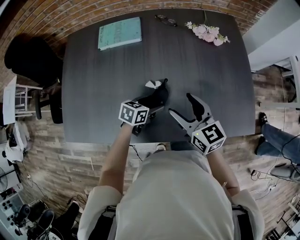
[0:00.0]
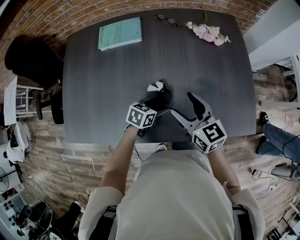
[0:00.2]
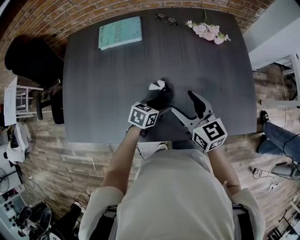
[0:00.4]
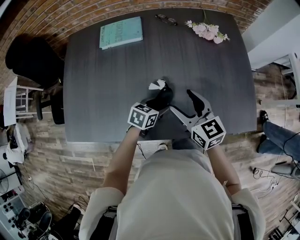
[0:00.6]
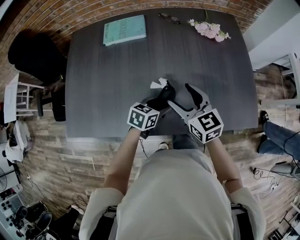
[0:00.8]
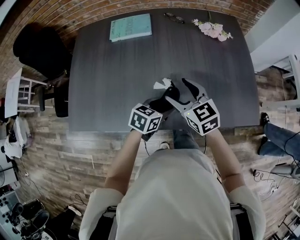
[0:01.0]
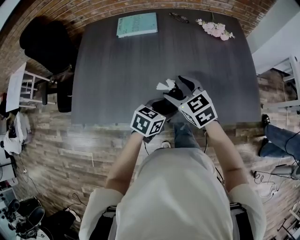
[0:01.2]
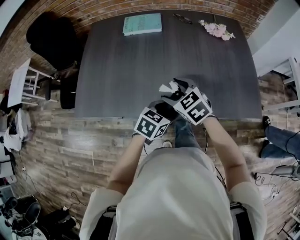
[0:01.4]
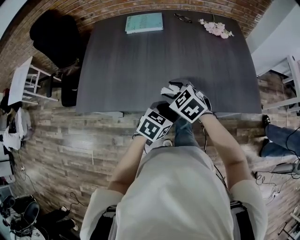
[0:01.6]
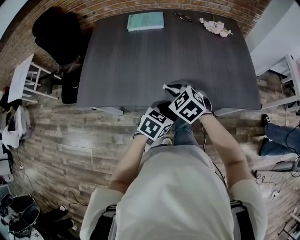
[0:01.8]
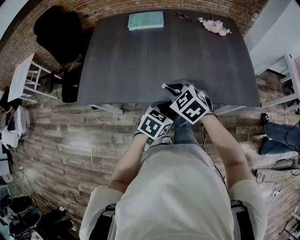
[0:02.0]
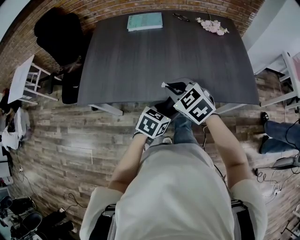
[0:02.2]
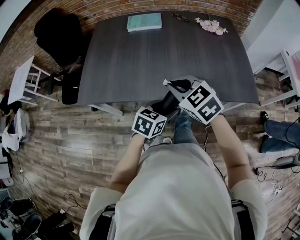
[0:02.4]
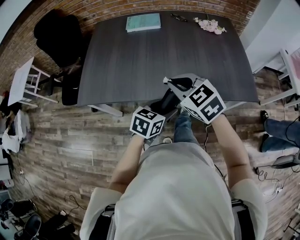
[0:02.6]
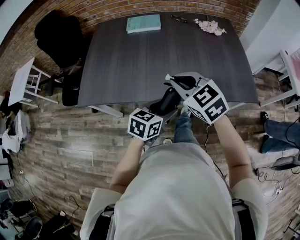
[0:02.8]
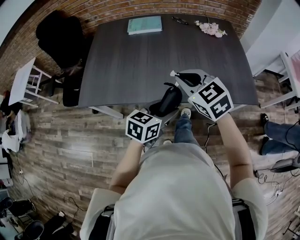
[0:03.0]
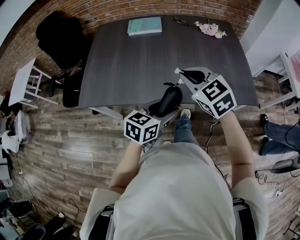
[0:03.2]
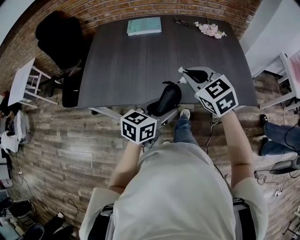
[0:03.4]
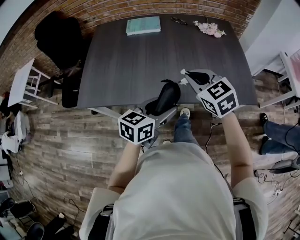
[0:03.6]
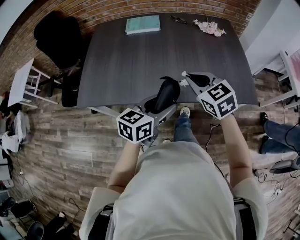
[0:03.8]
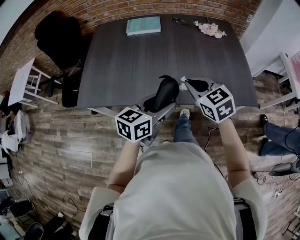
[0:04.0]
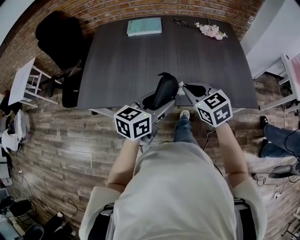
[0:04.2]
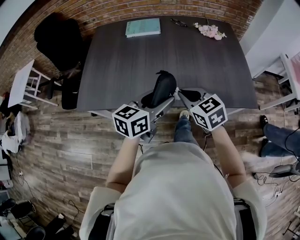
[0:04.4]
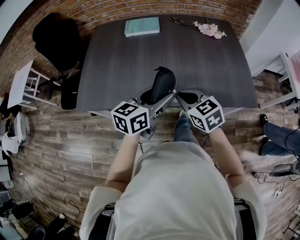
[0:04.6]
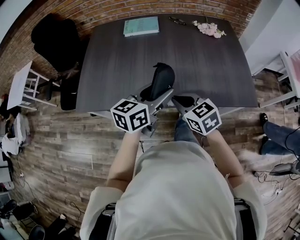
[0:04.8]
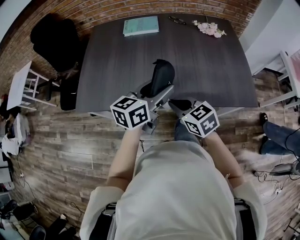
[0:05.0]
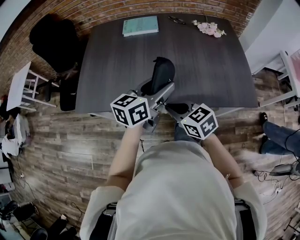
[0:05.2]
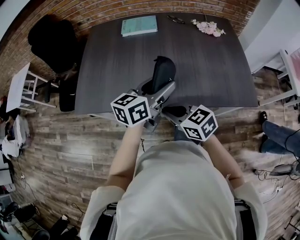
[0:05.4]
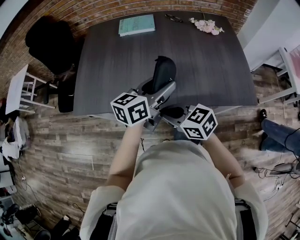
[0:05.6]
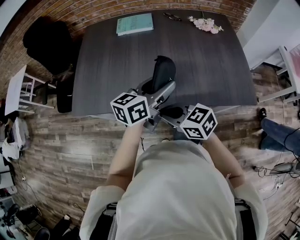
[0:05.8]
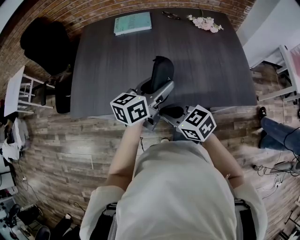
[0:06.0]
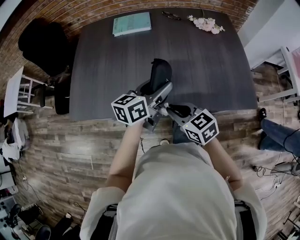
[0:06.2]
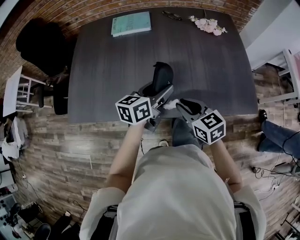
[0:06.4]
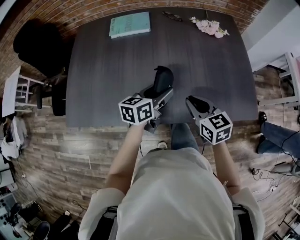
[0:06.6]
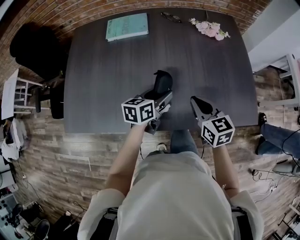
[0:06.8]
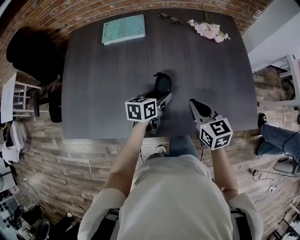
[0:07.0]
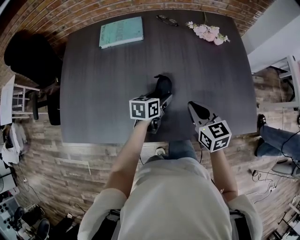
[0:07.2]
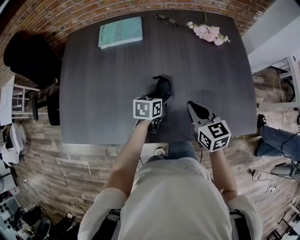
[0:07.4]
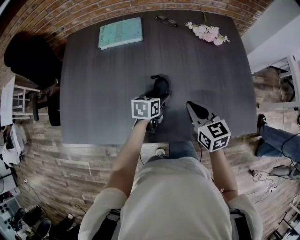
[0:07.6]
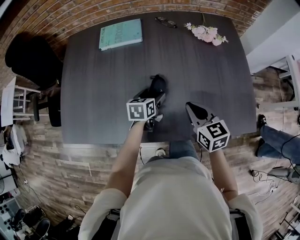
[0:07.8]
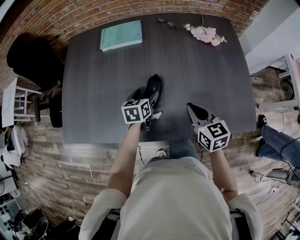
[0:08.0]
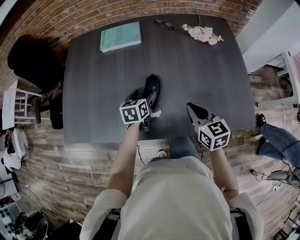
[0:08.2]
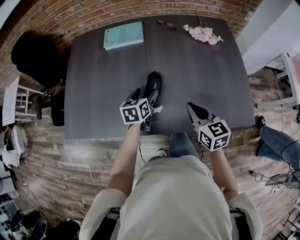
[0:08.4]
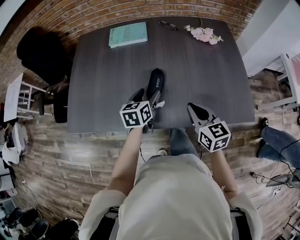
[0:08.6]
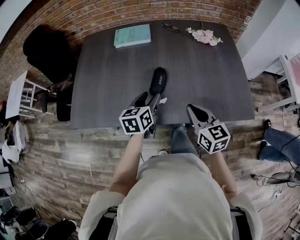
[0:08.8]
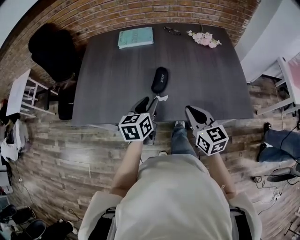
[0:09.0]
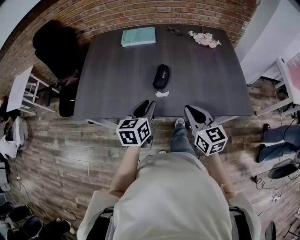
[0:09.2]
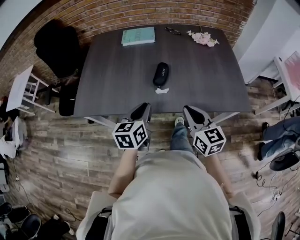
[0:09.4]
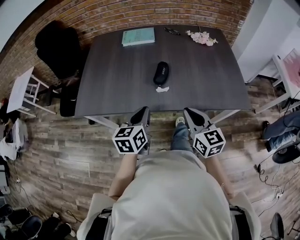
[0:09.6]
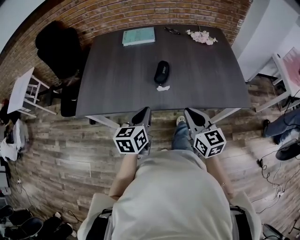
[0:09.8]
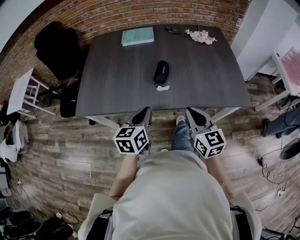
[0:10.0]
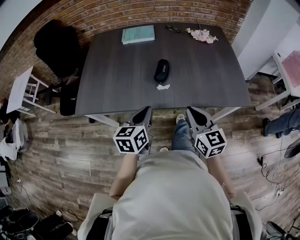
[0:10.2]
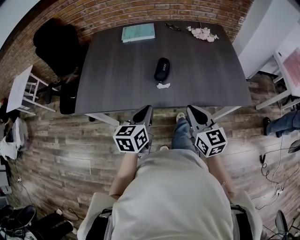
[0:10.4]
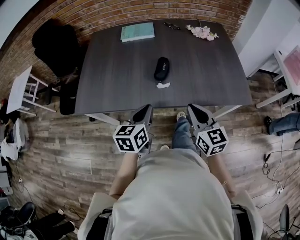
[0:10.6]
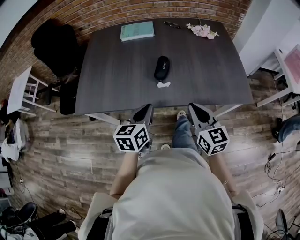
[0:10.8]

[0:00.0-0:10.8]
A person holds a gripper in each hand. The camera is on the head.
0.0 to 1.6 s: The right gripper travels backward and to the left by approximately 20 cm, and changes its angle by roughly 40 degrees; the left gripper goes roughly 25 cm backward and upward.
1.6 to 3.0 s: The left gripper shifts approximately 10 cm upward and backward. The right gripper heads upward and backward, covering roughly 15 cm, and closes its fingers.
3.0 to 4.6 s: The left gripper goes roughly 10 cm forward and upward. The right gripper heads downward, covering roughly 10 cm.
4.6 to 6.2 s: The left gripper moves forward, roughly 10 cm.
6.2 to 7.8 s: The right gripper shifts about 20 cm forward and to the right, and swivels some 20 degrees; the left gripper travels downward and forward by approximately 25 cm, and tips its fingers downward by some 30 degrees.
7.8 to 9.2 s: Both grippers move backward and upward, some 25 cm. The left gripper turns by roughly 20 degrees, and closes.
9.2 to 10.8 s: The left gripper moves backward, about 5 cm.

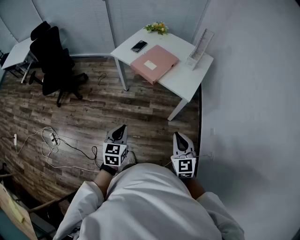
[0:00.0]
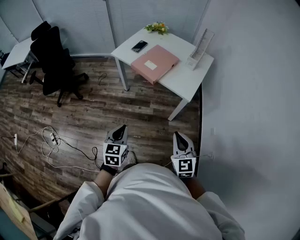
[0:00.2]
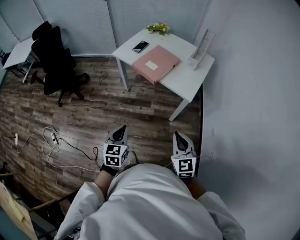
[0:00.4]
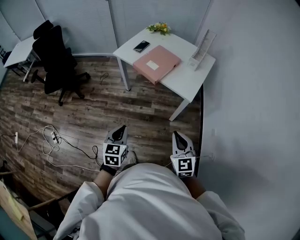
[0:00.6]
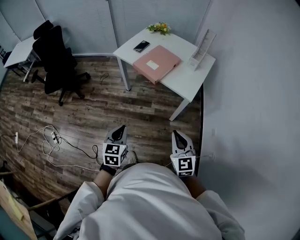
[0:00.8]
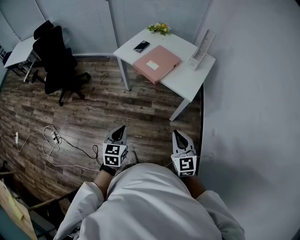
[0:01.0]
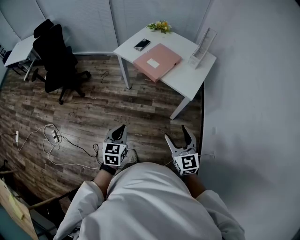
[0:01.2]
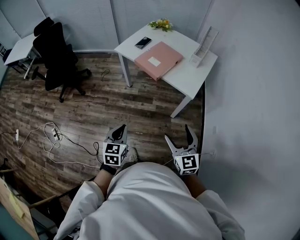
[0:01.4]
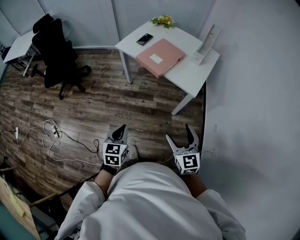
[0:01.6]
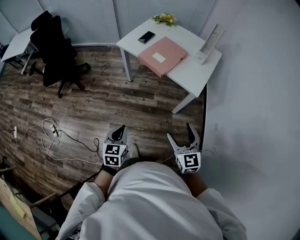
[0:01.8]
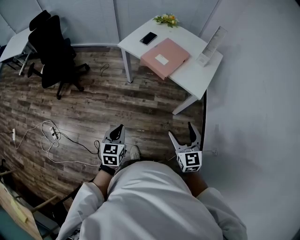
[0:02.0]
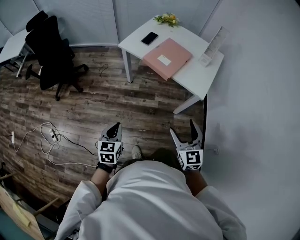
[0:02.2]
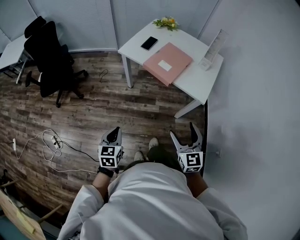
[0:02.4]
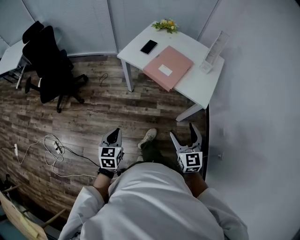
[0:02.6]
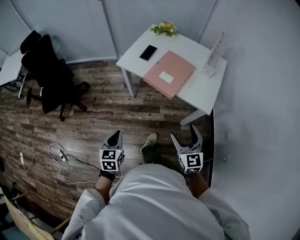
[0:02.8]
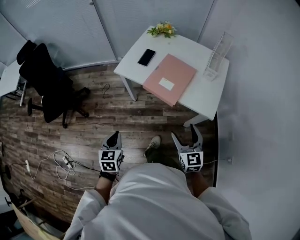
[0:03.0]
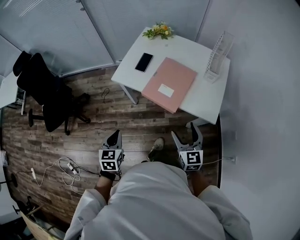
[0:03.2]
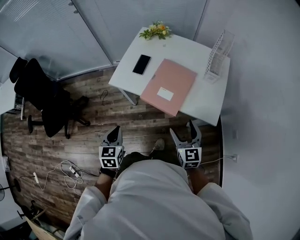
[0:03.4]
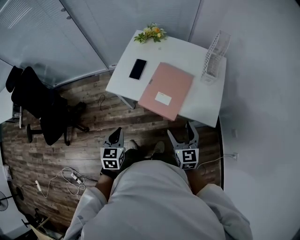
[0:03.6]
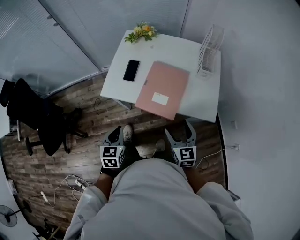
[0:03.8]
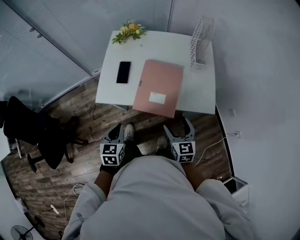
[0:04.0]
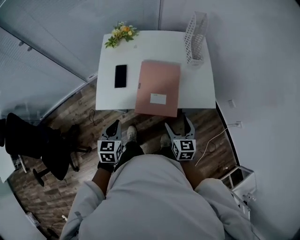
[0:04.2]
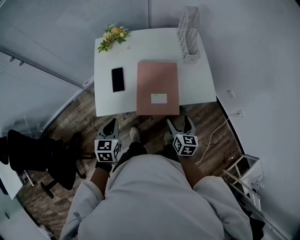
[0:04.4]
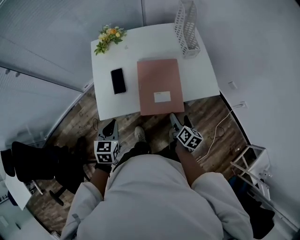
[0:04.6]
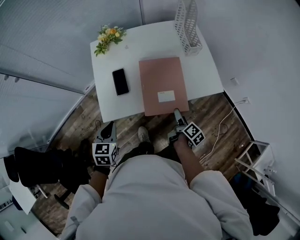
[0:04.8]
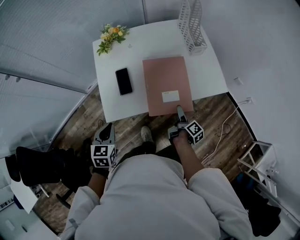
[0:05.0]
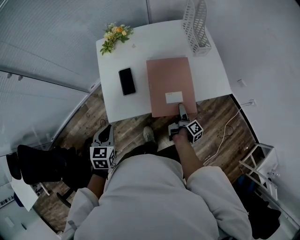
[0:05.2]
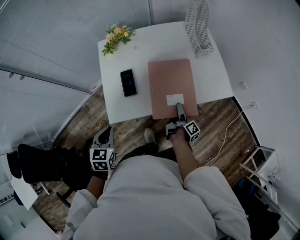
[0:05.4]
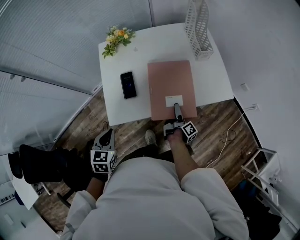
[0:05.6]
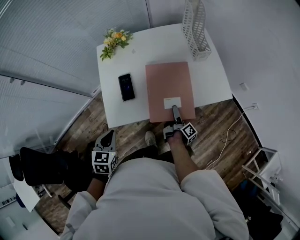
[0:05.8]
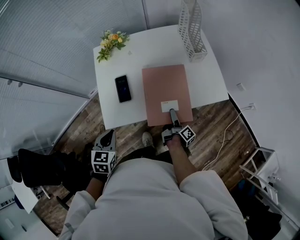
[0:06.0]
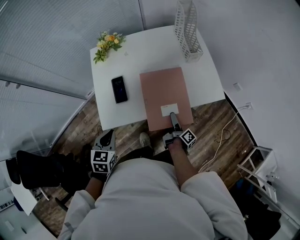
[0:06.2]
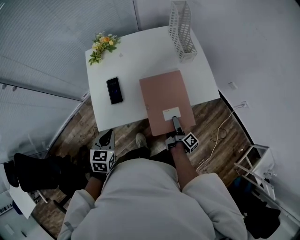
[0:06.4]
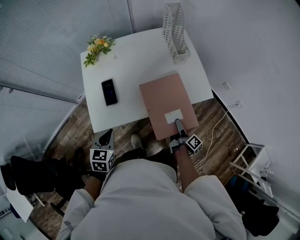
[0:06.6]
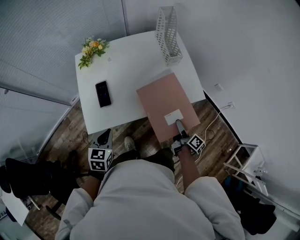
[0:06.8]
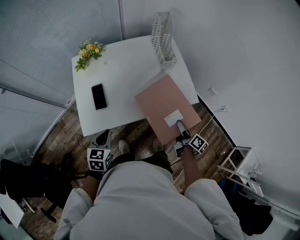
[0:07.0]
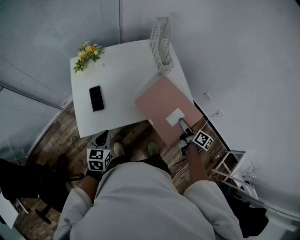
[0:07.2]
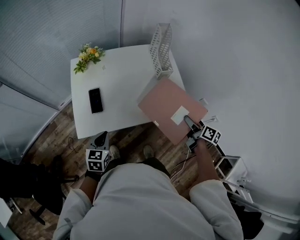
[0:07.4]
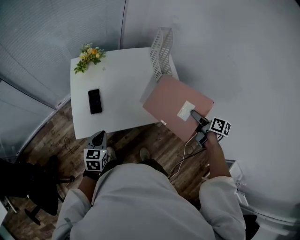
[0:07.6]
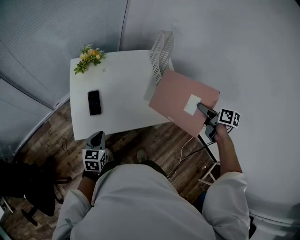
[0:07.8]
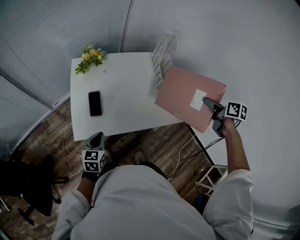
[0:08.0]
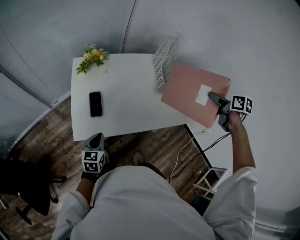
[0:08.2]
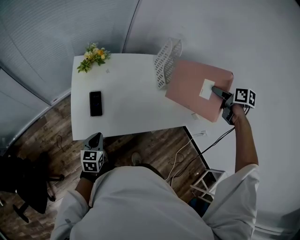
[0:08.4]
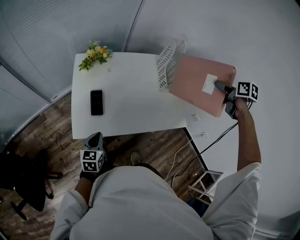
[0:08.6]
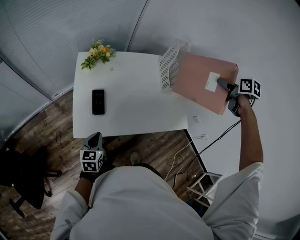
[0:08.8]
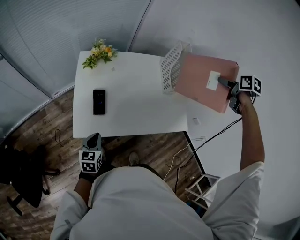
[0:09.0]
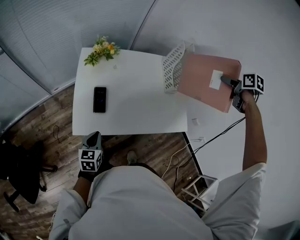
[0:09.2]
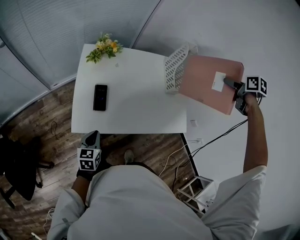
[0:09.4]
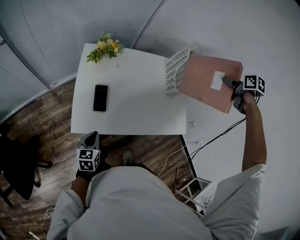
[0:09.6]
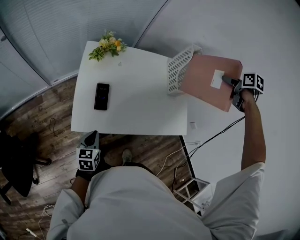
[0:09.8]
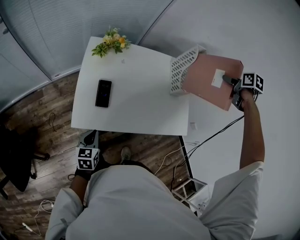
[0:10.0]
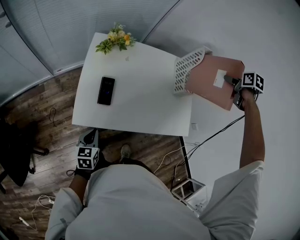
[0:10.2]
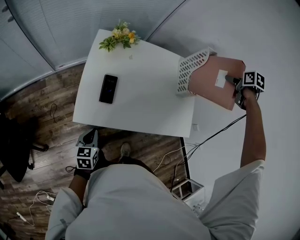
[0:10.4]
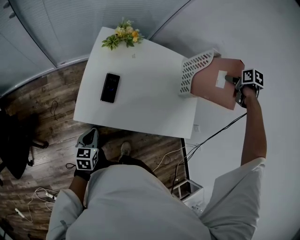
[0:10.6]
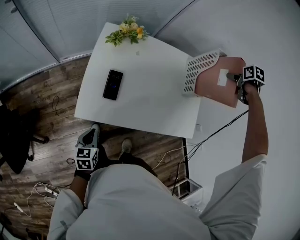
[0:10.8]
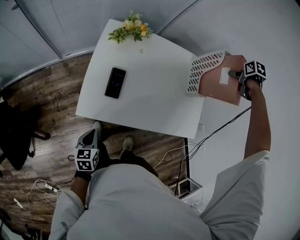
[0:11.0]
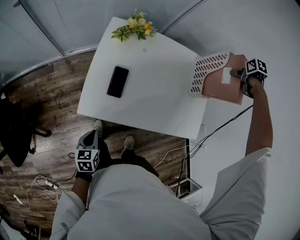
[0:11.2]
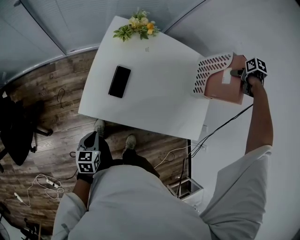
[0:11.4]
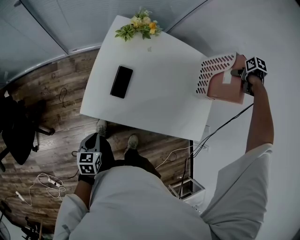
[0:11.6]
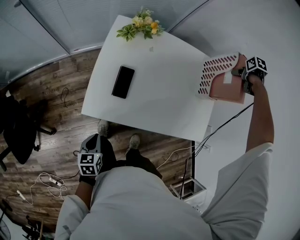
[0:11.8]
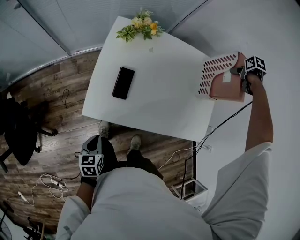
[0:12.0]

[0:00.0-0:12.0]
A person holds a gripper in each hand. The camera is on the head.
0.0 to 1.6 s: The right gripper opens up.
1.6 to 3.0 s: The right gripper travels forward by approximately 25 cm. The left gripper is displaced forward and to the left by roughly 30 cm.
3.0 to 4.4 s: The left gripper changes place by approximately 35 cm, and rotates approximately 40 degrees. Meanwhile the right gripper shifts by some 20 cm, and turns by approximately 50 degrees.
4.4 to 6.0 s: The right gripper is displaced downward and forward by some 15 cm, and rolls clockwise, seen from behind, by about 80 degrees; the left gripper shifts roughly 5 cm to the left.
6.0 to 7.6 s: The left gripper heads to the right, covering roughly 10 cm; the right gripper goes some 35 cm upward and to the right, and rolls counterclockwise, seen from behind, by approximately 50 degrees.
7.6 to 9.0 s: The right gripper heads forward and upward, covering about 30 cm, and swivels about 30 degrees; the left gripper travels to the left by about 5 cm.
9.0 to 10.4 s: The right gripper shifts some 15 cm forward, to the left and downward; the left gripper moves downward, some 5 cm.
10.4 to 12.0 s: The right gripper moves downward, approximately 15 cm, while the left gripper moves some 5 cm.

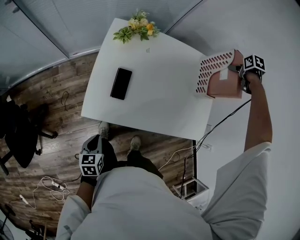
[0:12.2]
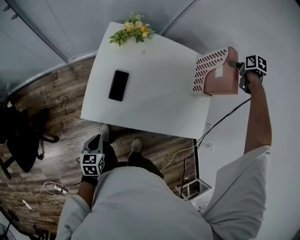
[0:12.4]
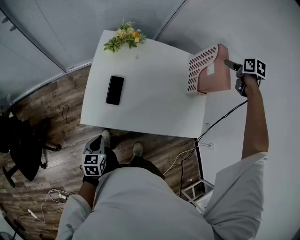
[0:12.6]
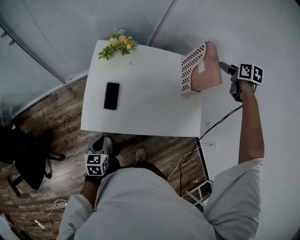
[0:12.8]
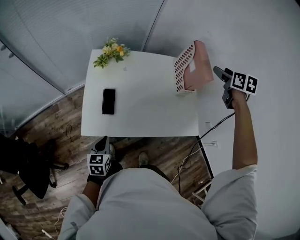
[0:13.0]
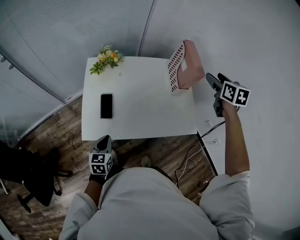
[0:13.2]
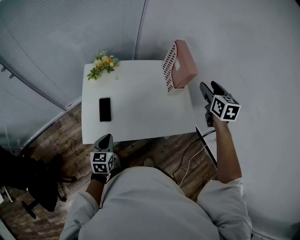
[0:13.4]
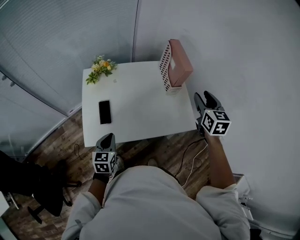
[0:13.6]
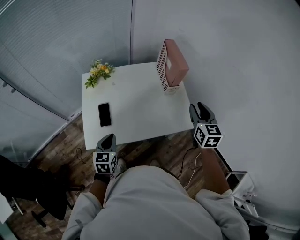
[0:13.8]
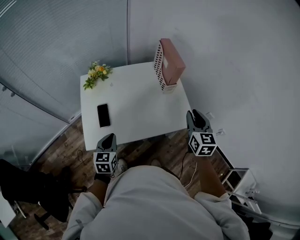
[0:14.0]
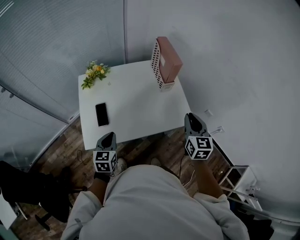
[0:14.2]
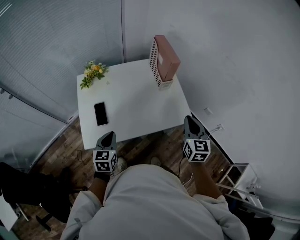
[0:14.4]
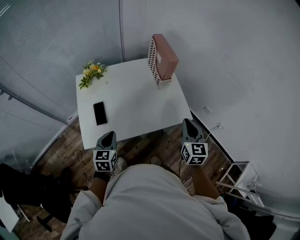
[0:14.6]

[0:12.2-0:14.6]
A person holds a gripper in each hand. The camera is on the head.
12.2 to 13.4 s: The left gripper ends up some 20 cm from where it was, and swivels about 30 degrees; the right gripper shifts by roughly 30 cm, and tilts its fingers approximately 50 degrees upward.
13.4 to 14.6 s: The left gripper travels to the right by roughly 5 cm; the right gripper moves backward and downward, roughly 25 cm, and closes its fingers.
